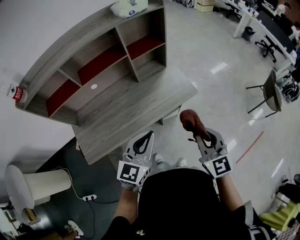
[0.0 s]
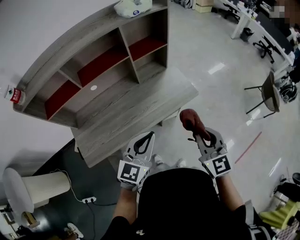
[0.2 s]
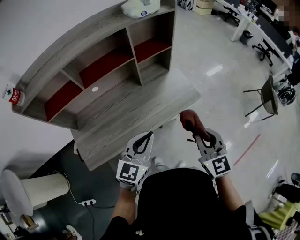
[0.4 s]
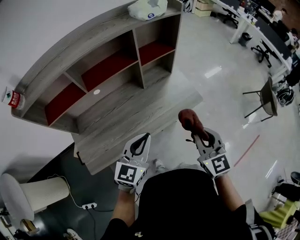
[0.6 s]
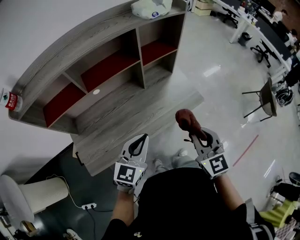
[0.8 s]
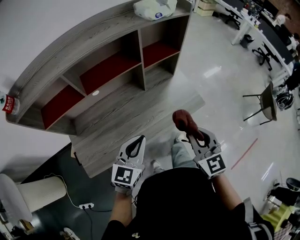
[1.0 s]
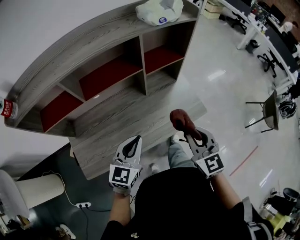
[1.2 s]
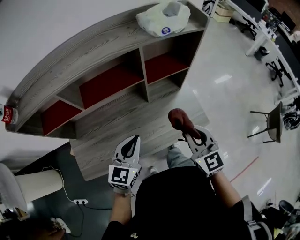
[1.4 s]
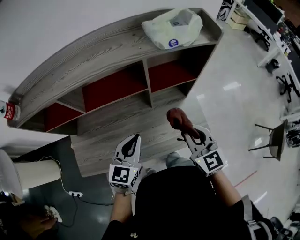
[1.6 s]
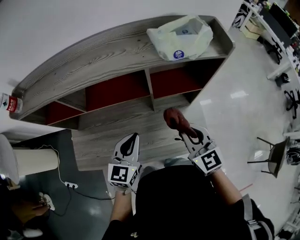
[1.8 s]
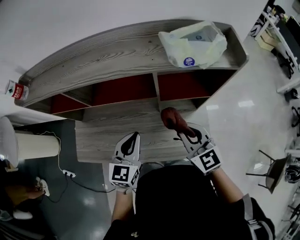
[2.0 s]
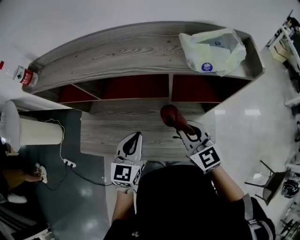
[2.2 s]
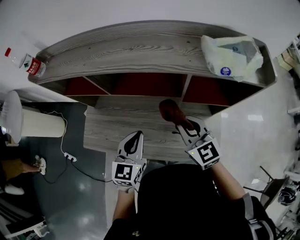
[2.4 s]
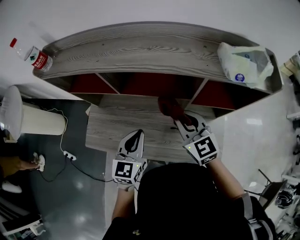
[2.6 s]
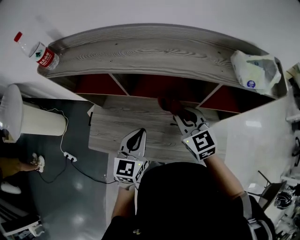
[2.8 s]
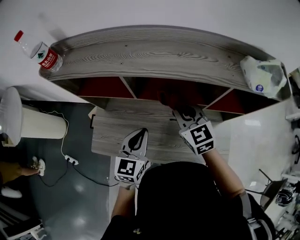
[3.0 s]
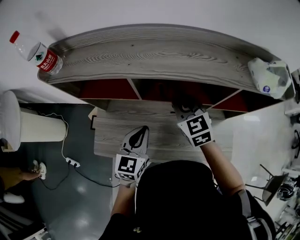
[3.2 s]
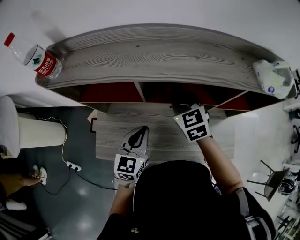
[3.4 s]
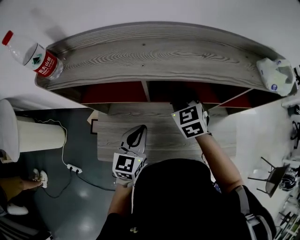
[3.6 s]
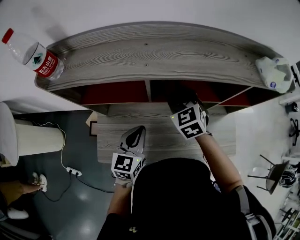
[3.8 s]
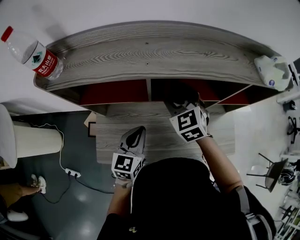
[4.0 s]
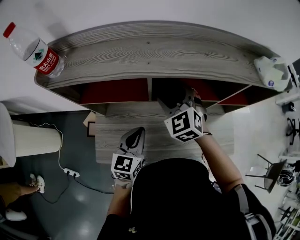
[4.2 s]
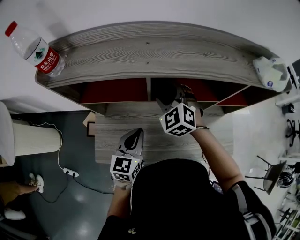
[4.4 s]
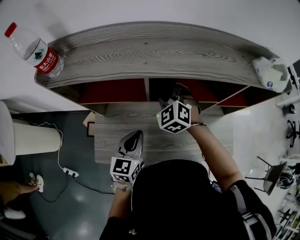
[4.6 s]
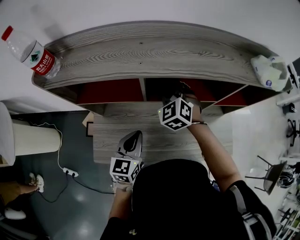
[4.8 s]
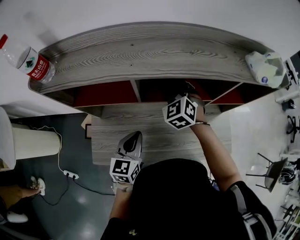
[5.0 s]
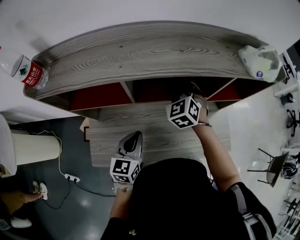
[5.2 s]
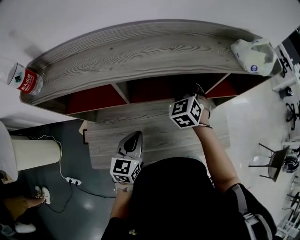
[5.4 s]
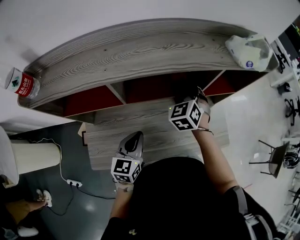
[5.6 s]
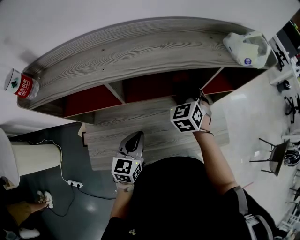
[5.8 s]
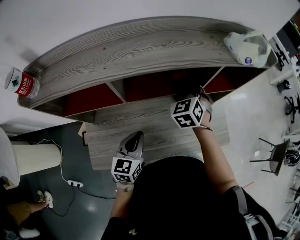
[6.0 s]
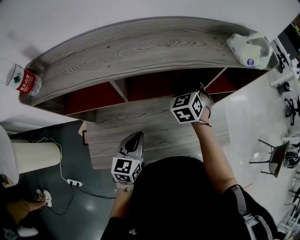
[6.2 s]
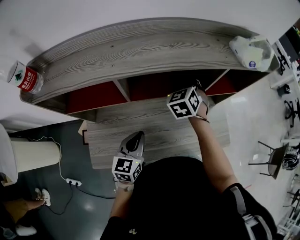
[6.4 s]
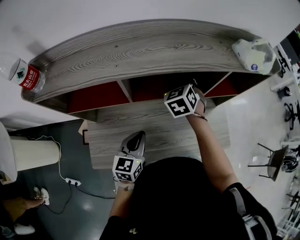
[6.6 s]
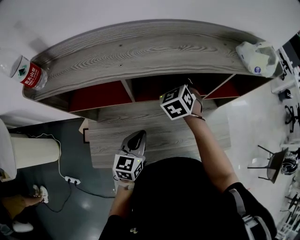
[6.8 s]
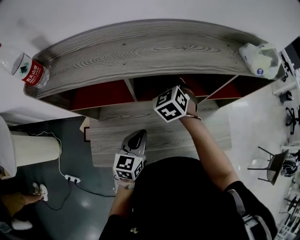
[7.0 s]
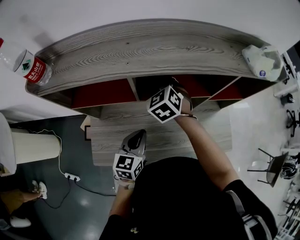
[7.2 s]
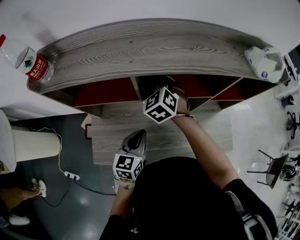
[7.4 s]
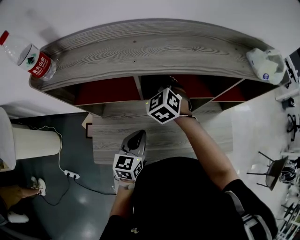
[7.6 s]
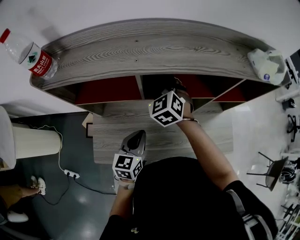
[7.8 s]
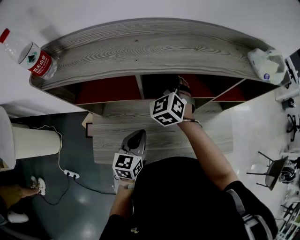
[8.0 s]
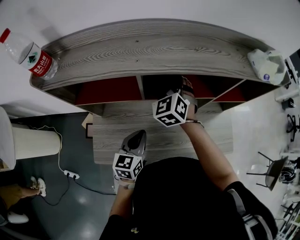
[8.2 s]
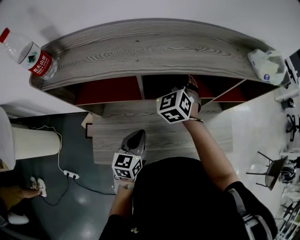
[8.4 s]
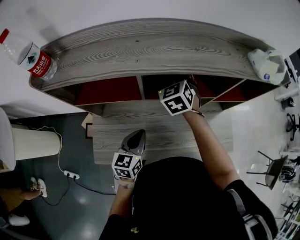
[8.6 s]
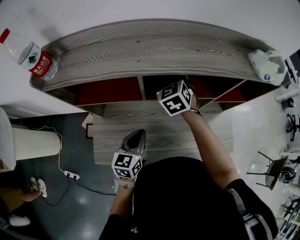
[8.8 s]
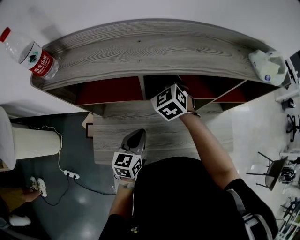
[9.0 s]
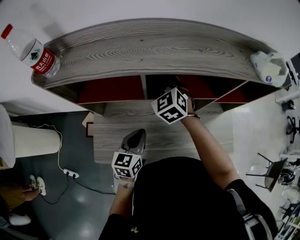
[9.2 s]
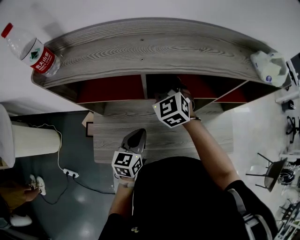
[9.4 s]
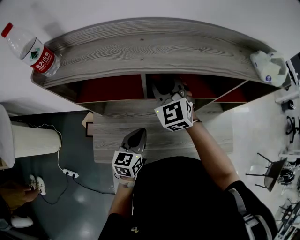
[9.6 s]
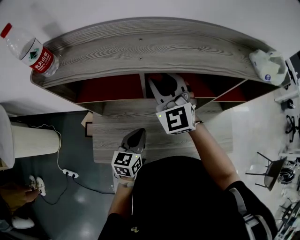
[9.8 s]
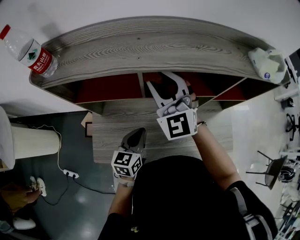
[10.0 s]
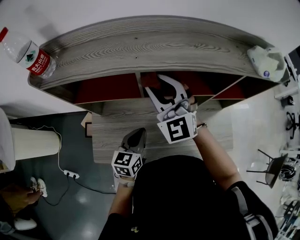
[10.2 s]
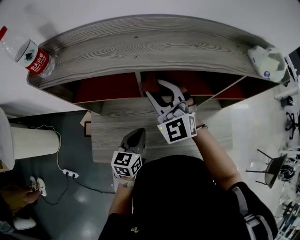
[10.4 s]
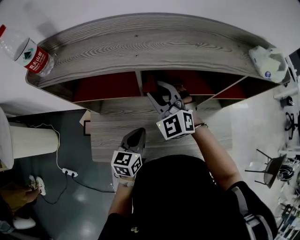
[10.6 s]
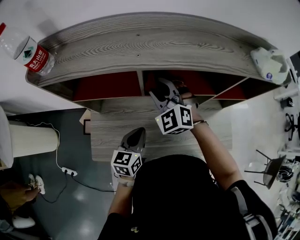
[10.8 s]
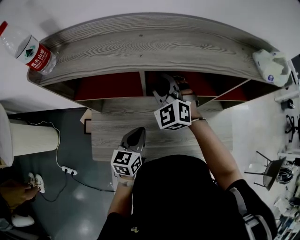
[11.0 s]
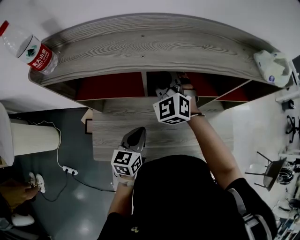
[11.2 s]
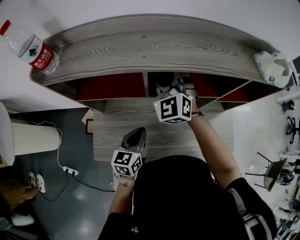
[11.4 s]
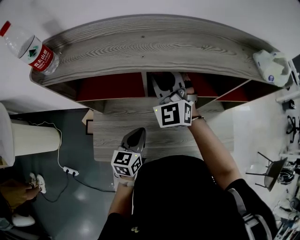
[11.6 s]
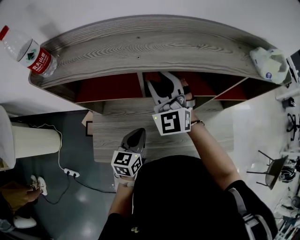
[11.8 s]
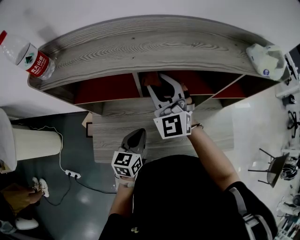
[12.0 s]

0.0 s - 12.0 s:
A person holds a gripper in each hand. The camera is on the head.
0.0 s - 1.6 s: The right gripper moves forward, approximately 30 cm, while the left gripper heads forward and to the left, covering about 25 cm, and rotates approximately 20 degrees.
1.6 s - 3.0 s: The right gripper moves some 30 cm, and changes its angle by some 20 degrees, while the left gripper ends up some 15 cm from where it was, and changes its angle by roughly 20 degrees.
3.0 s - 4.4 s: The left gripper shifts some 10 cm to the left. The right gripper goes about 15 cm to the left and forward, changes its angle by about 30 degrees, and opens its fingers.
4.4 s - 6.0 s: The right gripper is displaced to the right by roughly 20 cm, changes its angle by approximately 30 degrees, and closes. Meanwhile the left gripper goes some 10 cm to the right.
6.0 s - 7.6 s: The right gripper shifts roughly 20 cm to the left, and rotates roughly 20 degrees.
7.6 s - 9.0 s: The right gripper opens and closes again.
9.0 s - 10.4 s: The right gripper is displaced backward and upward by some 10 cm, and swivels approximately 30 degrees.
10.4 s - 12.0 s: The right gripper reaches some 5 cm downward, then returns.

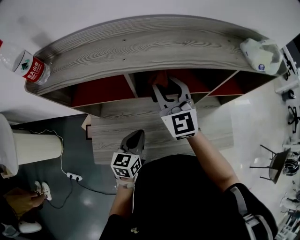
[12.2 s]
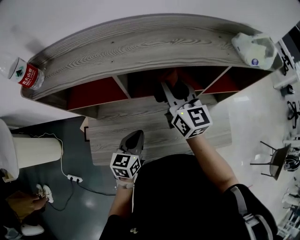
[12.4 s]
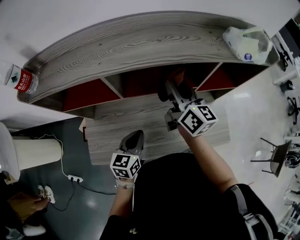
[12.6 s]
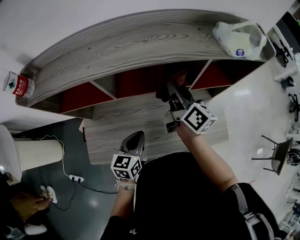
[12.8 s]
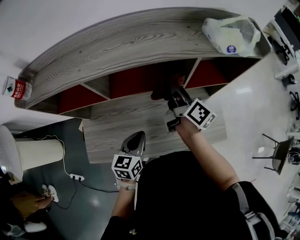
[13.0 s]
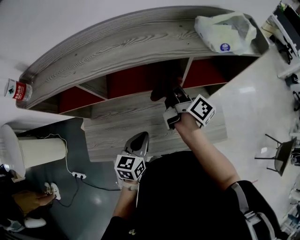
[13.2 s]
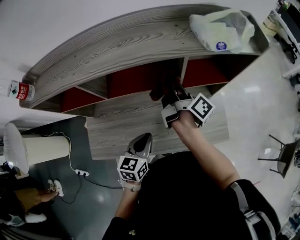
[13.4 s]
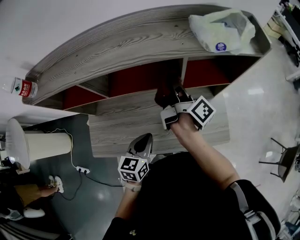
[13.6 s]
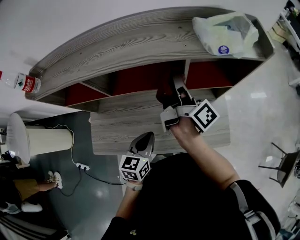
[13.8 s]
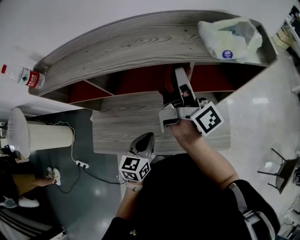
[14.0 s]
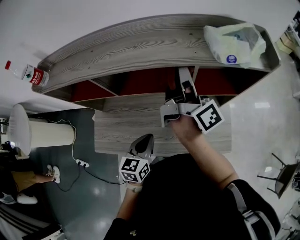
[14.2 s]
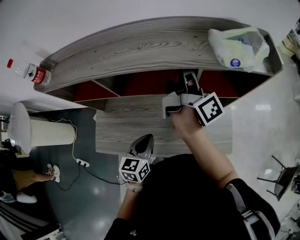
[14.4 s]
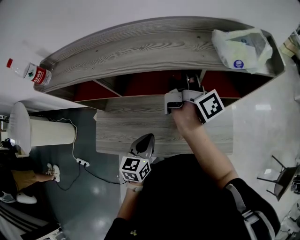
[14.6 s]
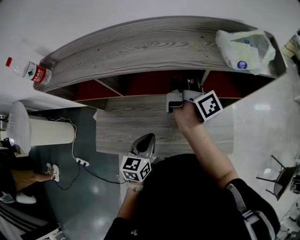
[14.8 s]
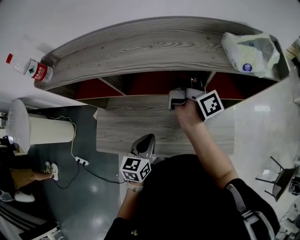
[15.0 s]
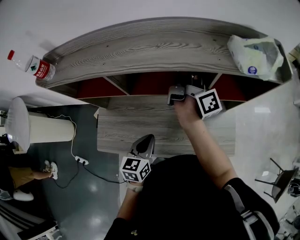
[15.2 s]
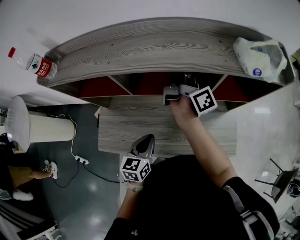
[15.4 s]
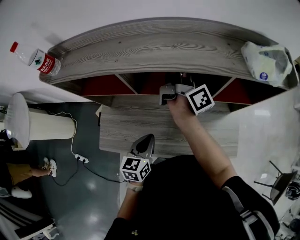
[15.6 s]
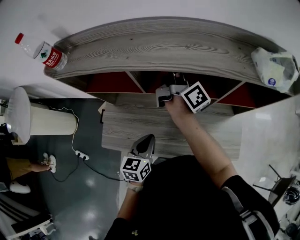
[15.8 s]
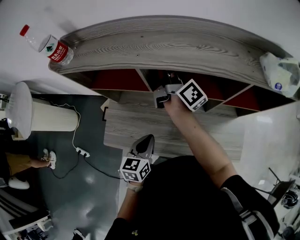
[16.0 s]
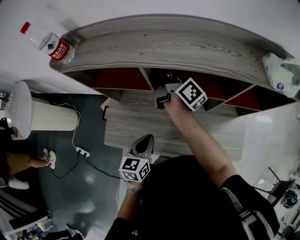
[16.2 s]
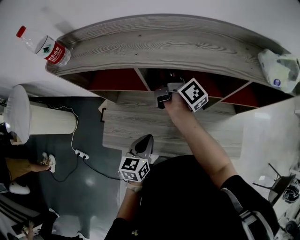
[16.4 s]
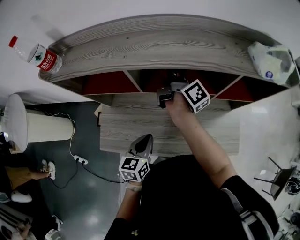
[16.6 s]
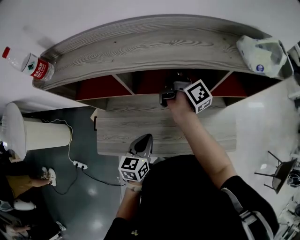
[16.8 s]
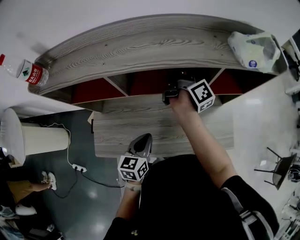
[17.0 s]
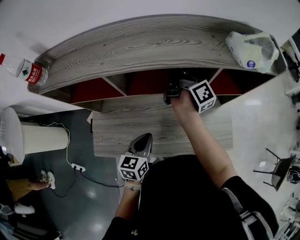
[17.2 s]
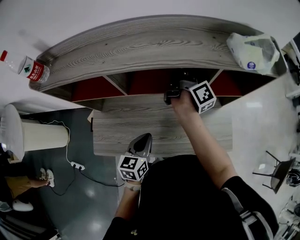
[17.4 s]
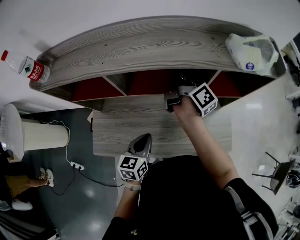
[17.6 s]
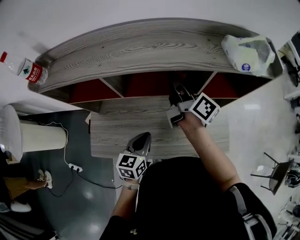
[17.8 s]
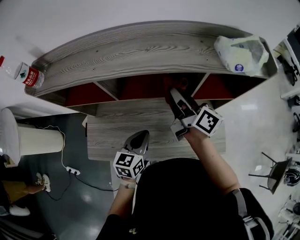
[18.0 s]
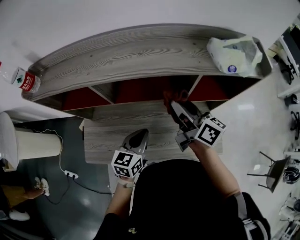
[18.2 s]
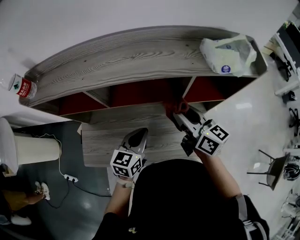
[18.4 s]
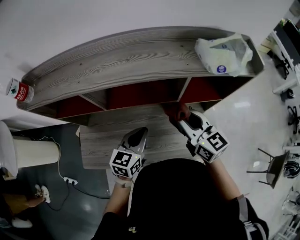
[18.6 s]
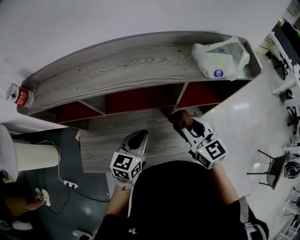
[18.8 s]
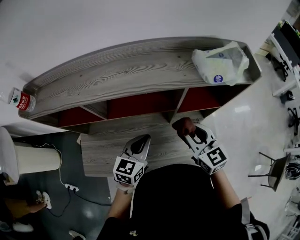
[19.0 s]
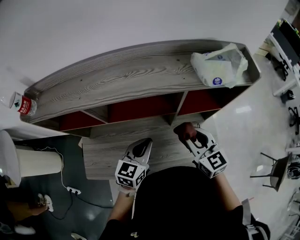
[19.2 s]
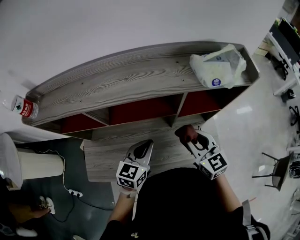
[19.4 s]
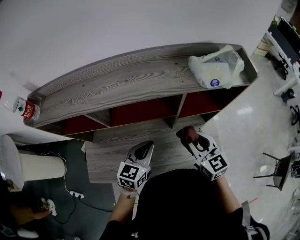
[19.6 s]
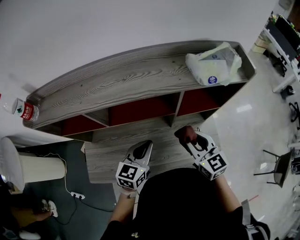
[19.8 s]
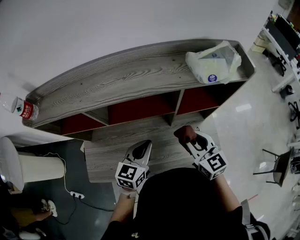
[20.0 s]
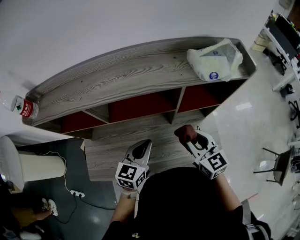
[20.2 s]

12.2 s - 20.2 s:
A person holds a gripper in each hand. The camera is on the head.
12.2 s - 13.8 s: Both grippers travel together to the right, about 20 cm. The right gripper rolls clockwise, seen from behind, by approximately 100 degrees.
13.8 s - 15.4 s: The left gripper shifts roughly 10 cm to the left, while the right gripper is displaced forward and to the left by some 10 cm.
15.4 s - 17.0 s: The left gripper travels to the left and back again, roughly 10 cm each way, while the right gripper moves roughly 15 cm to the left and comes back.
17.0 s - 18.6 s: The right gripper heads backward, covering some 15 cm, and rotates around the line of its fingers by approximately 60 degrees, counterclockwise from behind, while the left gripper moves to the right, forward and upward, approximately 10 cm.
18.6 s - 20.2 s: The right gripper shifts by roughly 5 cm.

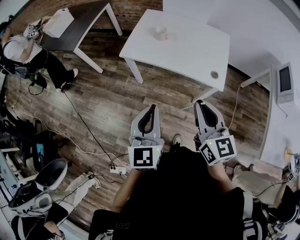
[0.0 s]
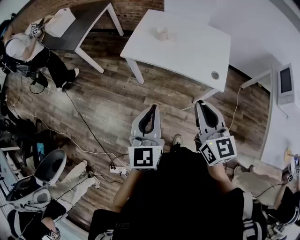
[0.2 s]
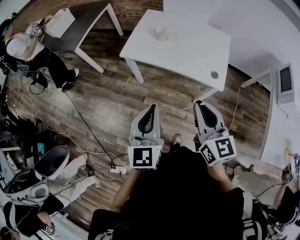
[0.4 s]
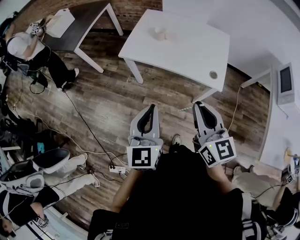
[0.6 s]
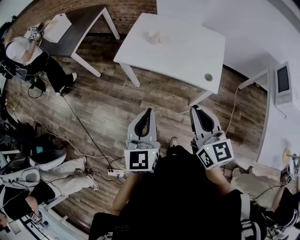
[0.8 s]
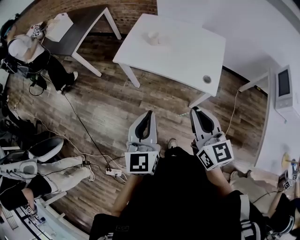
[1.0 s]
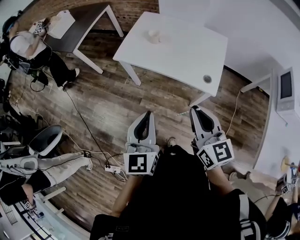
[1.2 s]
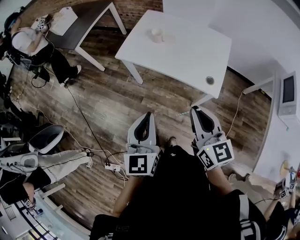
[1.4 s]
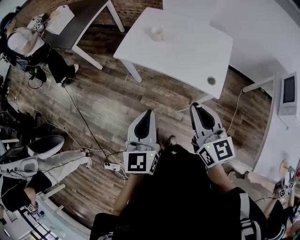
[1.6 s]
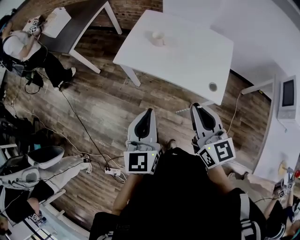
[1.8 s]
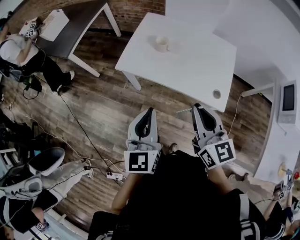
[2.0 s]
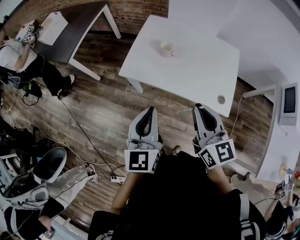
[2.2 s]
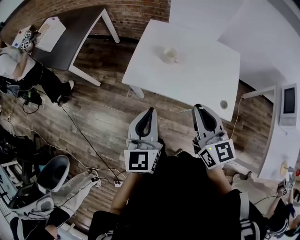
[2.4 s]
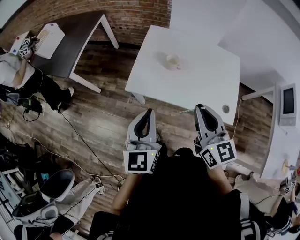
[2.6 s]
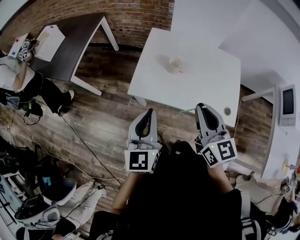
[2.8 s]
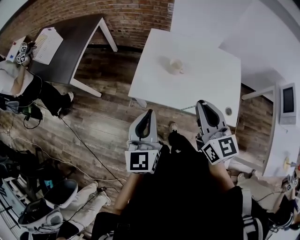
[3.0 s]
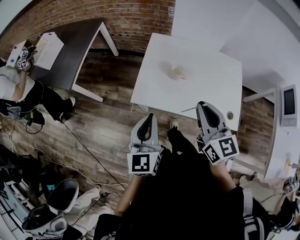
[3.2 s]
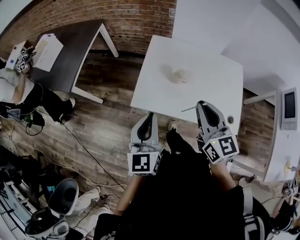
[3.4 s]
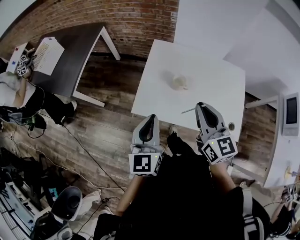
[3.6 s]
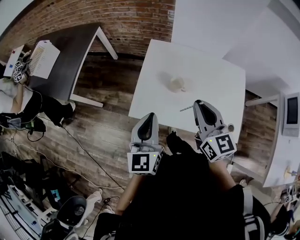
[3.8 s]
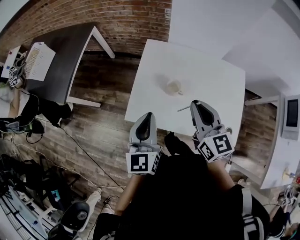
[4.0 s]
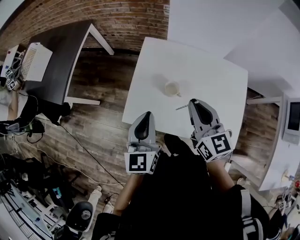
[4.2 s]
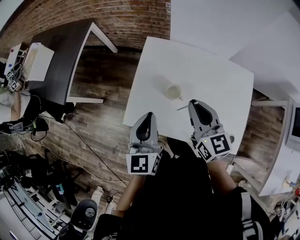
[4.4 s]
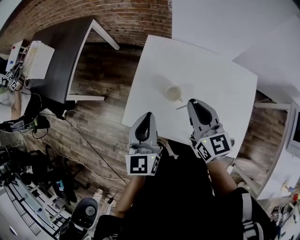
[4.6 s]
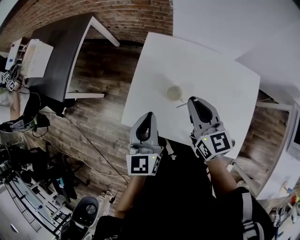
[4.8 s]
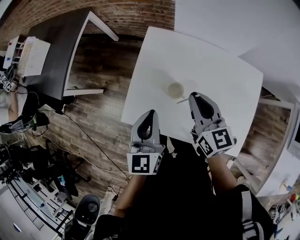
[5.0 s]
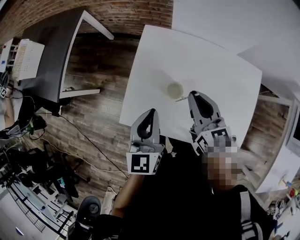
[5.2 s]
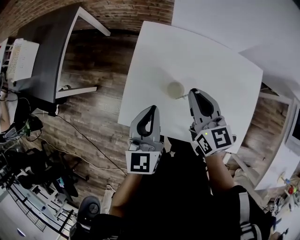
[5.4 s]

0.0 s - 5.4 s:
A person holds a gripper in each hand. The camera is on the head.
0.0 s - 1.4 s: Both grippers move to the right, roughly 5 cm.
1.4 s - 2.8 s: The grippers both shift forward and to the left by some 30 cm.
2.8 s - 4.0 s: The grippers both shift forward by roughly 20 cm.
4.0 s - 5.4 s: Both grippers travel together forward and downward, roughly 15 cm.
